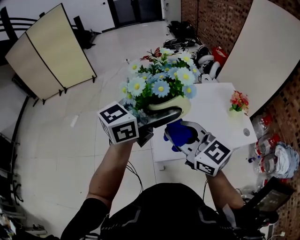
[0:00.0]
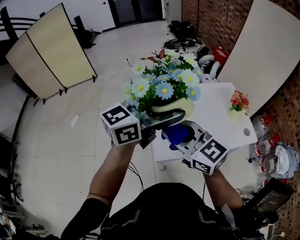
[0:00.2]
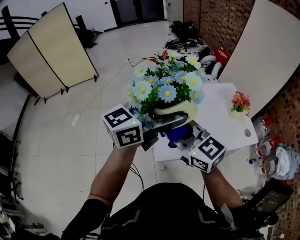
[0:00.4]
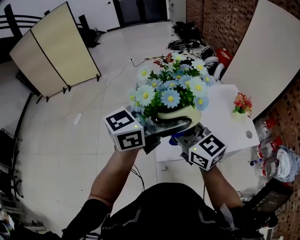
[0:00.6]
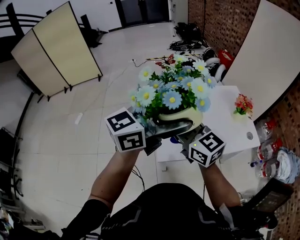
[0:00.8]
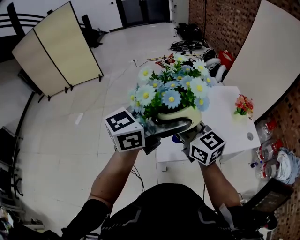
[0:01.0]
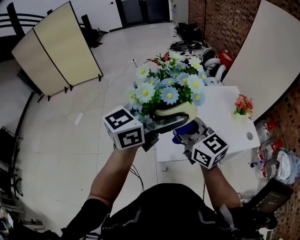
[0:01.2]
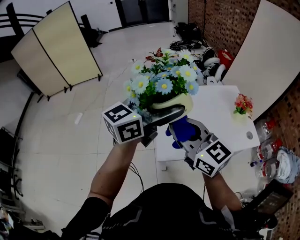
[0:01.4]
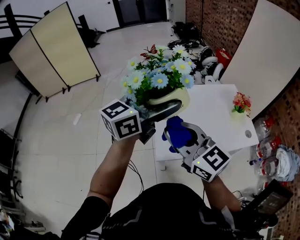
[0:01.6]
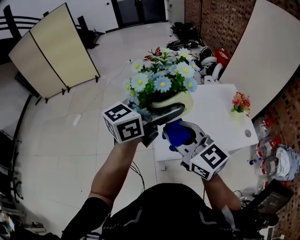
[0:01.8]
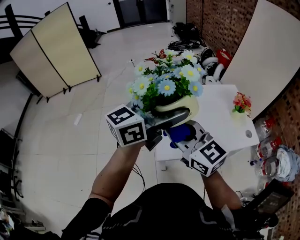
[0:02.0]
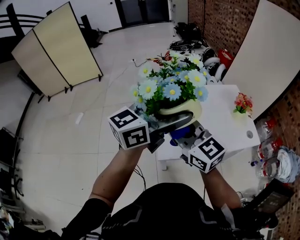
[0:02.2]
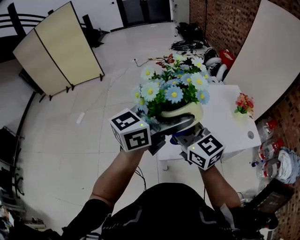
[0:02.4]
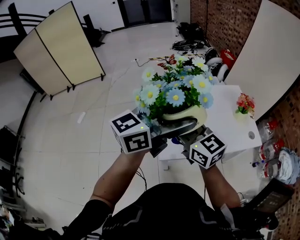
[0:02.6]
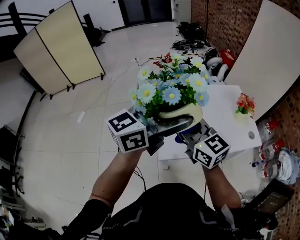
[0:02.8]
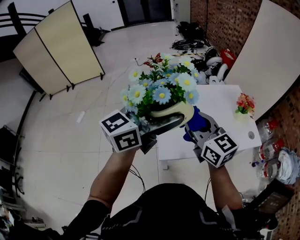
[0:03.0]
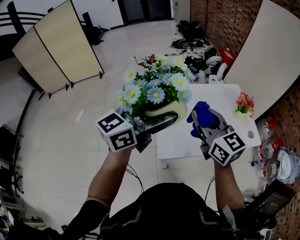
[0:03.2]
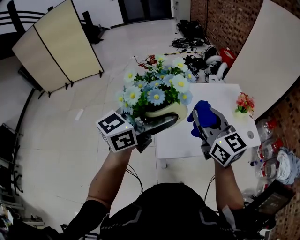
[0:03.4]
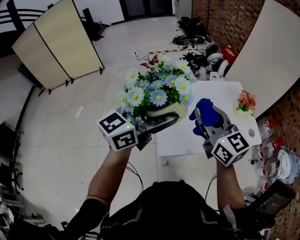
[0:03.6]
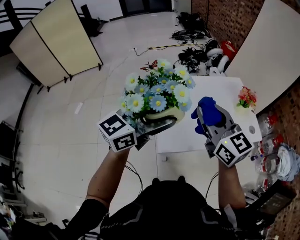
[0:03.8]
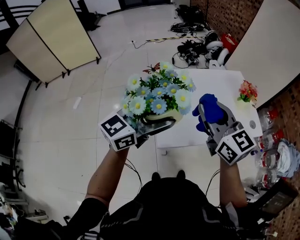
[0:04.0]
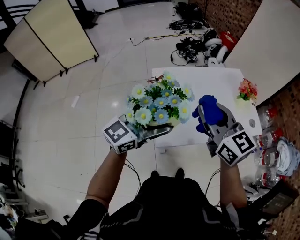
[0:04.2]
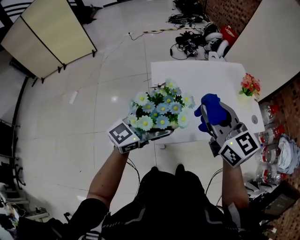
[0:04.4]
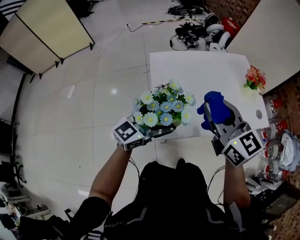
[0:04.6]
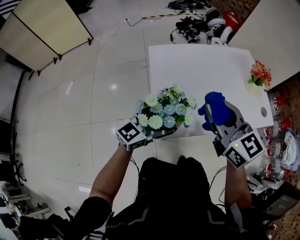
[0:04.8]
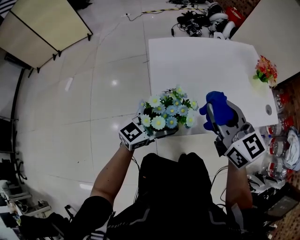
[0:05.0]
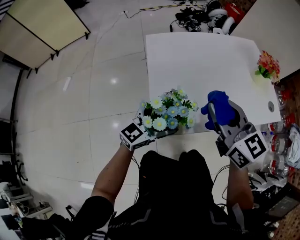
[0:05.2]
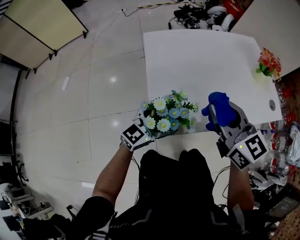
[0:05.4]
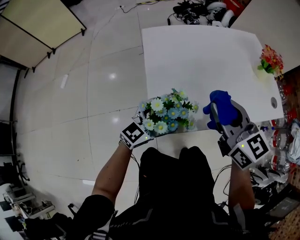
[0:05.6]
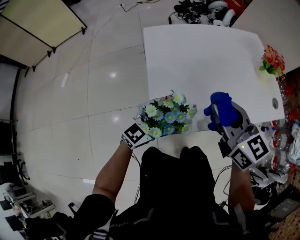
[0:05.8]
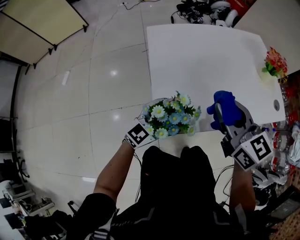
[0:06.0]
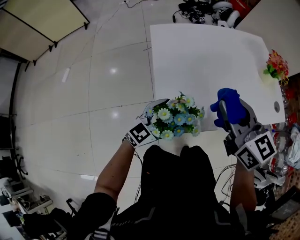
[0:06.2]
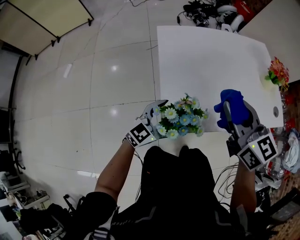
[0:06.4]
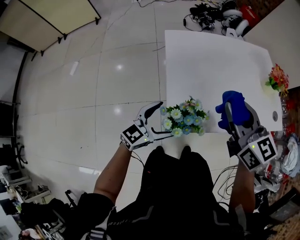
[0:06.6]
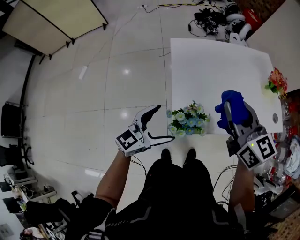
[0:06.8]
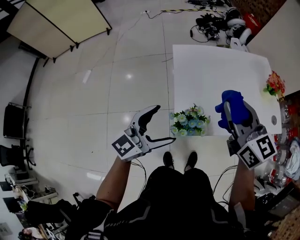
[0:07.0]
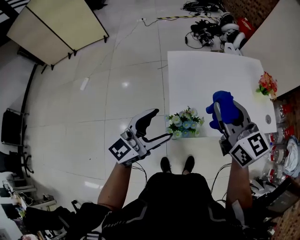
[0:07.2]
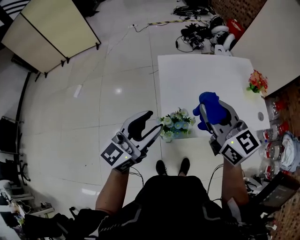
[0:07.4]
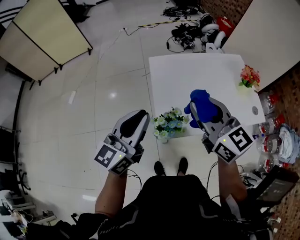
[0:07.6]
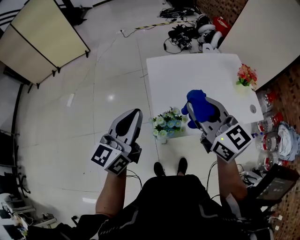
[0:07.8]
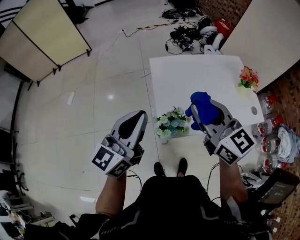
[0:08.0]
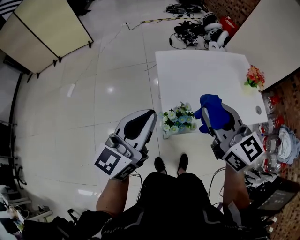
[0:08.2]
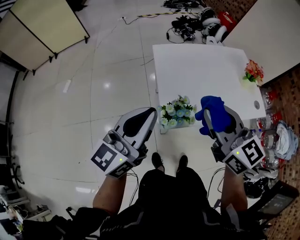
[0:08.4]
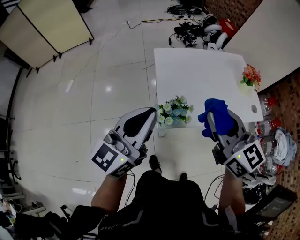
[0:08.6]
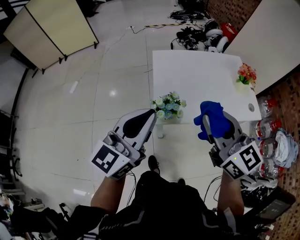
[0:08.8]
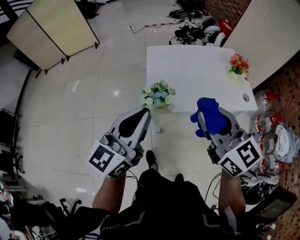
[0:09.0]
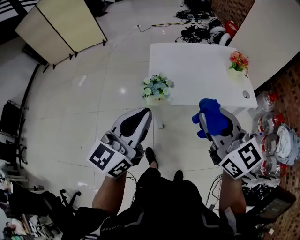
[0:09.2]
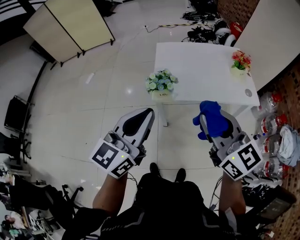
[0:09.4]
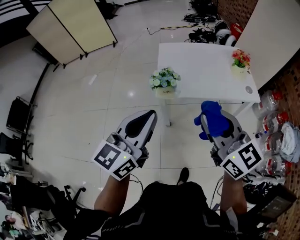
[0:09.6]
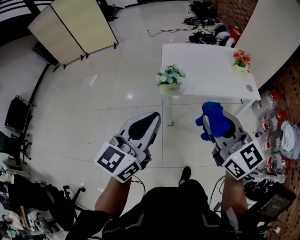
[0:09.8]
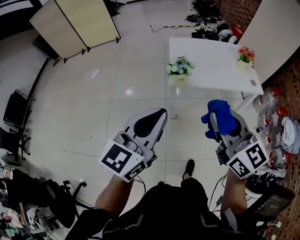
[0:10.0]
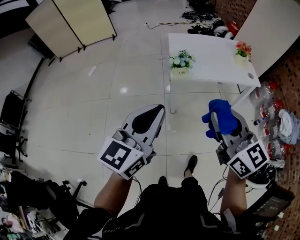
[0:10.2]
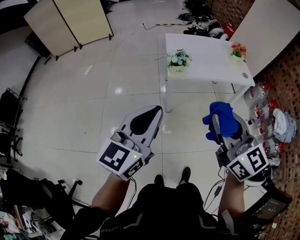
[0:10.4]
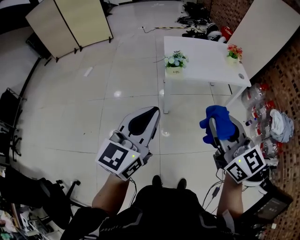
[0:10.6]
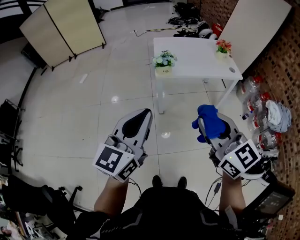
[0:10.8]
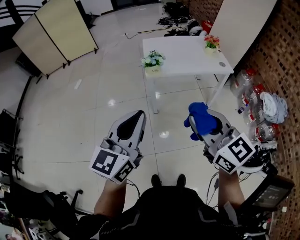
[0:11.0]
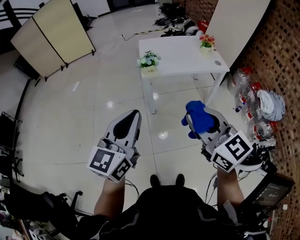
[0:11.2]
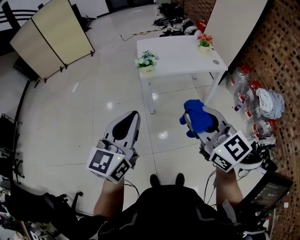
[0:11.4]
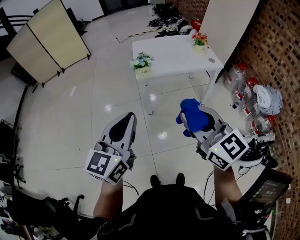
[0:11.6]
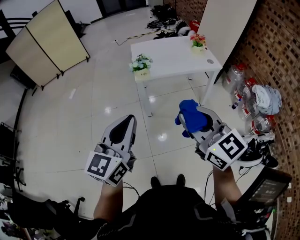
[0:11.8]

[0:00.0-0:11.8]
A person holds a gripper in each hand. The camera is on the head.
0:01.4 to 0:03.0: The right gripper moves forward, some 5 cm.
0:03.0 to 0:04.4: The left gripper shifts about 20 cm downward.
0:04.4 to 0:06.0: The two grippers go about 25 cm downward.
0:06.0 to 0:07.4: The right gripper moves upward, about 20 cm, while the left gripper shifts some 30 cm upward, turns by some 30 degrees, and closes up.
0:07.4 to 0:08.8: Both grippers move backward, about 15 cm. The left gripper closes.
0:08.8 to 0:10.4: Both grippers are carried backward, some 40 cm.
0:10.4 to 0:11.8: The left gripper is displaced backward and to the right by approximately 10 cm, while the right gripper is displaced backward by some 10 cm.

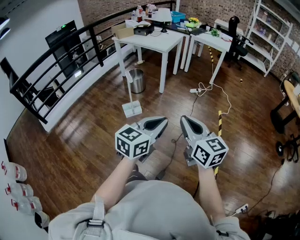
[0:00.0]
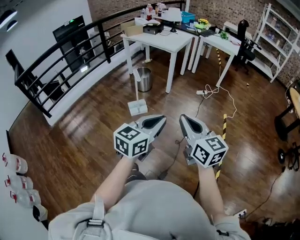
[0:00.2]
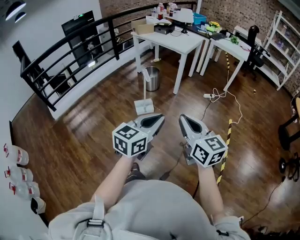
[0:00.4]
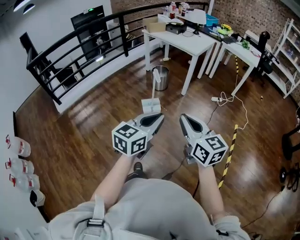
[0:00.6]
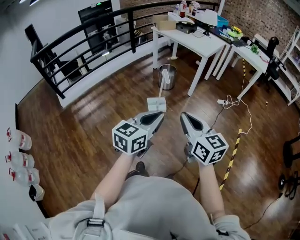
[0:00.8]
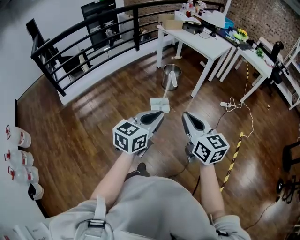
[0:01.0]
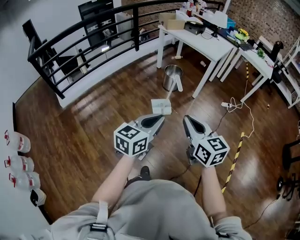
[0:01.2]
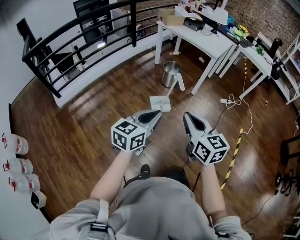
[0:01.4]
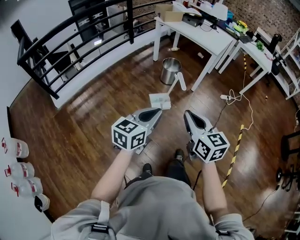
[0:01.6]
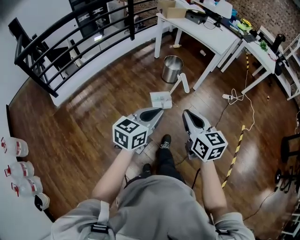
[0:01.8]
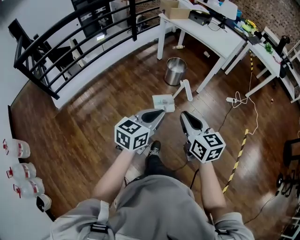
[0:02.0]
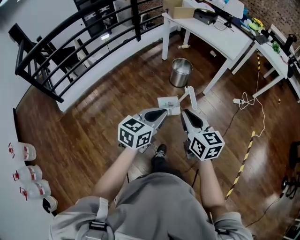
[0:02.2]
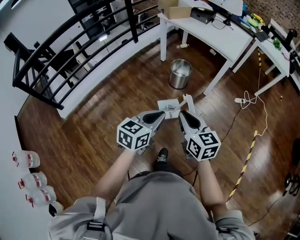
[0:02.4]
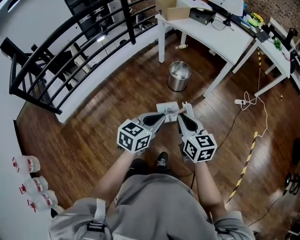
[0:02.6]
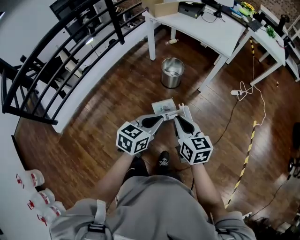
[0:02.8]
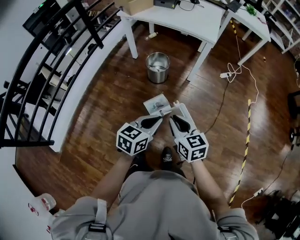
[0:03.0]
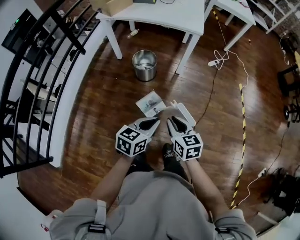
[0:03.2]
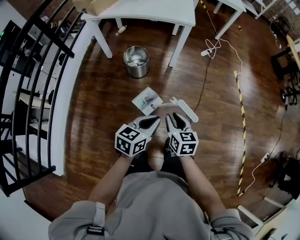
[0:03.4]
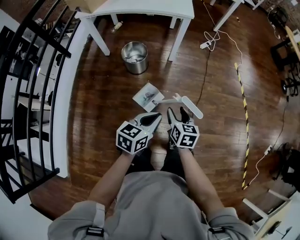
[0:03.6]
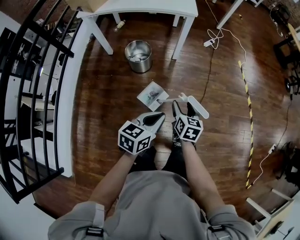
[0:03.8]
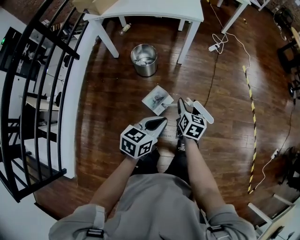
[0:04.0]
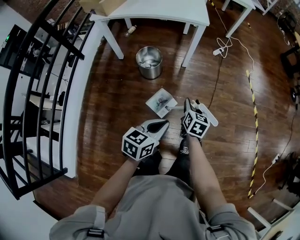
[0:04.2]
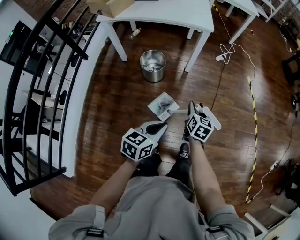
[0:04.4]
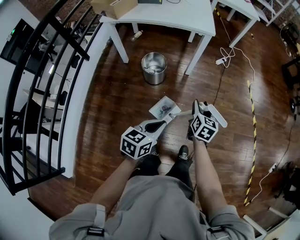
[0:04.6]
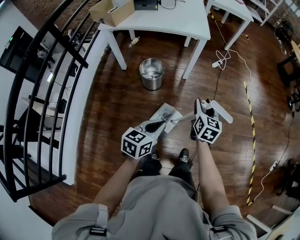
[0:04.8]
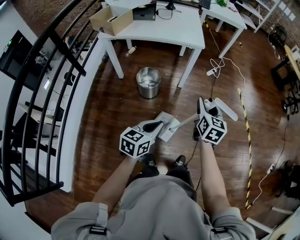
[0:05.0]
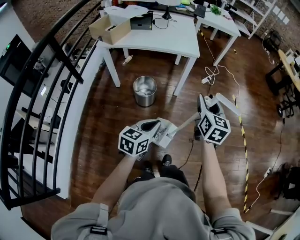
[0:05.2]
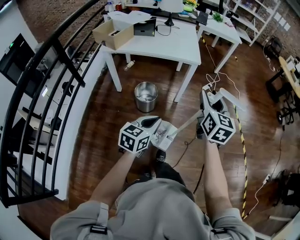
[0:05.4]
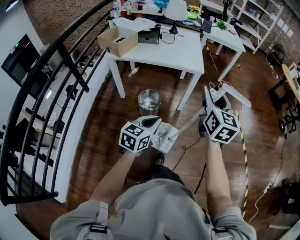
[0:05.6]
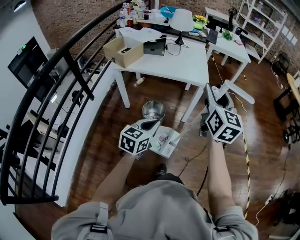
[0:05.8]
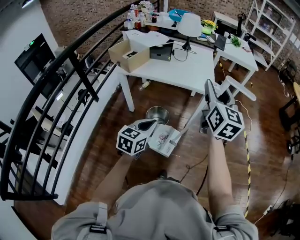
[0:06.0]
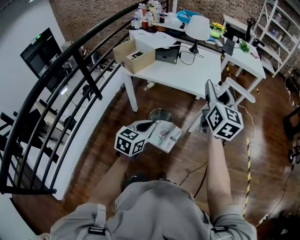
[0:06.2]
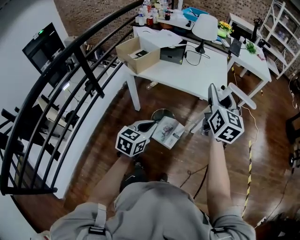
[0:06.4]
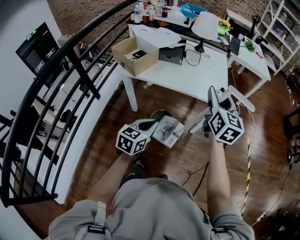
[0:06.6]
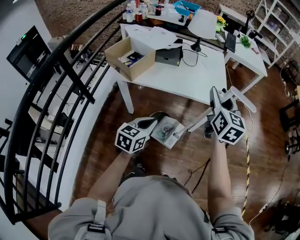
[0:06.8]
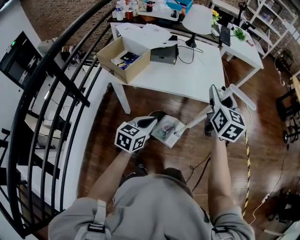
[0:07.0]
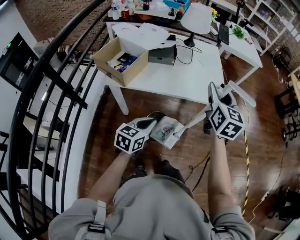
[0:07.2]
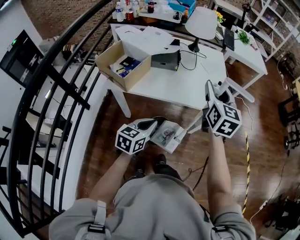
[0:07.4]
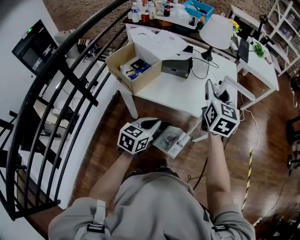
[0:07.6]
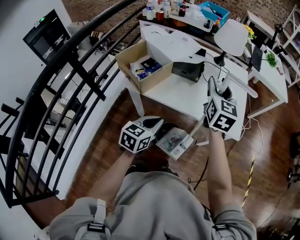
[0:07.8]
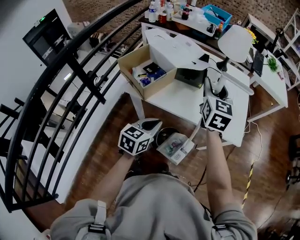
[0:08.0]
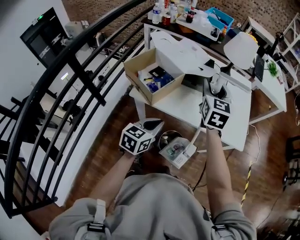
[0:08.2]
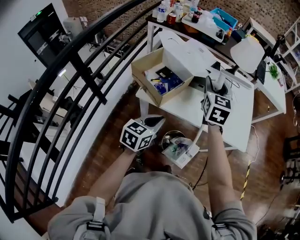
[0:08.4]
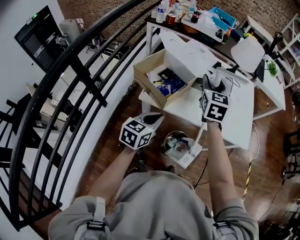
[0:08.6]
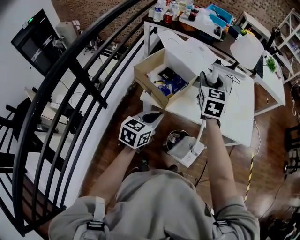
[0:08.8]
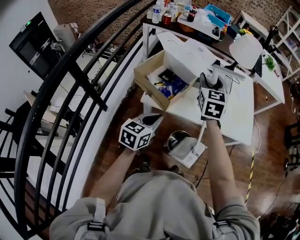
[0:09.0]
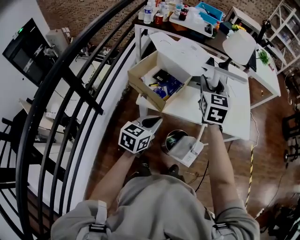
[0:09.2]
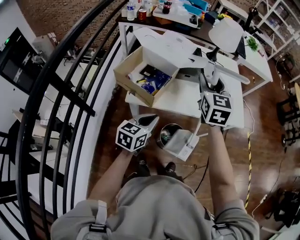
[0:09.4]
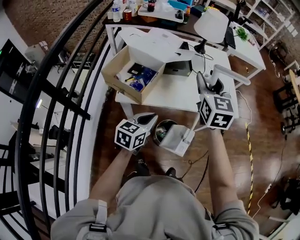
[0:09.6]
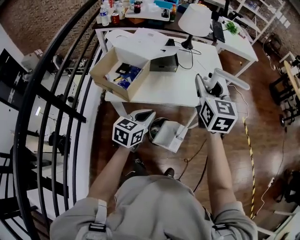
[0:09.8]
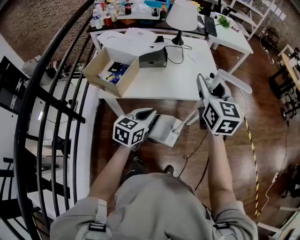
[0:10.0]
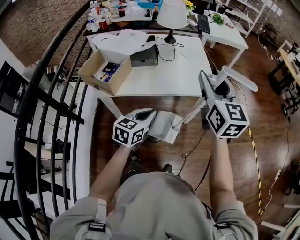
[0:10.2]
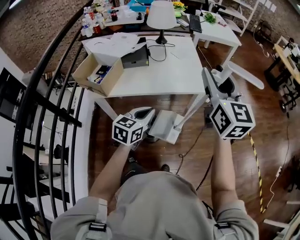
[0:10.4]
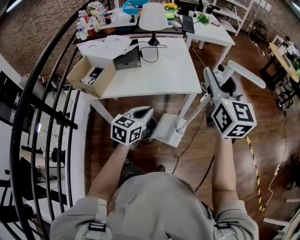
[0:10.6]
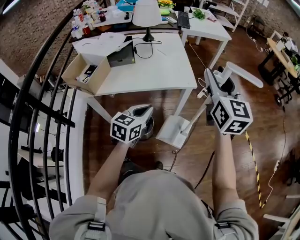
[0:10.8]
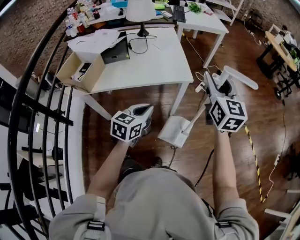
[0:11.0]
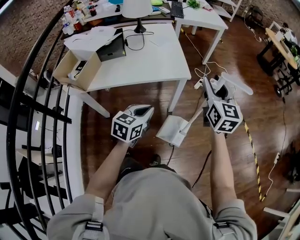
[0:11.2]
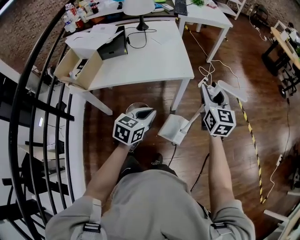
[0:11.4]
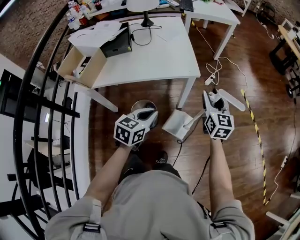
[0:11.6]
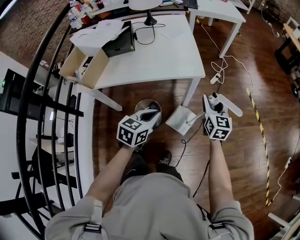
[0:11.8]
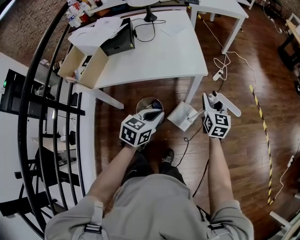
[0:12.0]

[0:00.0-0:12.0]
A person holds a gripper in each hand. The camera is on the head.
0:00.0 to 0:01.6: The grippers both shift to the left and forward by some 40 cm.
0:01.6 to 0:03.0: The left gripper moves forward, approximately 30 cm, and changes its angle by about 30 degrees. Meanwhile the right gripper travels forward and downward by approximately 35 cm.
0:03.0 to 0:04.4: The left gripper changes place by some 10 cm. The right gripper shifts by about 20 cm, turns by approximately 50 degrees, and opens.
0:04.4 to 0:06.0: The right gripper goes roughly 50 cm upward and forward, and tips its fingers upward by about 40 degrees. The left gripper goes approximately 30 cm forward, to the left and upward, and changes its angle by about 20 degrees.
0:06.0 to 0:07.6: The grippers both shift forward and to the left by about 30 cm.
0:07.6 to 0:09.0: The grippers both shift to the left by approximately 25 cm.
0:09.0 to 0:10.4: The right gripper shifts some 40 cm to the right and backward, and swivels roughly 20 degrees, while the left gripper goes approximately 30 cm to the right.
0:10.4 to 0:12.0: The left gripper heads to the right and downward, covering approximately 15 cm. Meanwhile the right gripper moves downward and to the right, some 35 cm, and swivels approximately 20 degrees.
